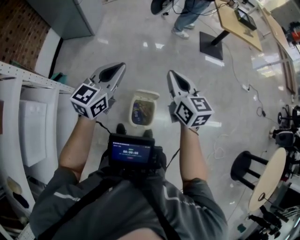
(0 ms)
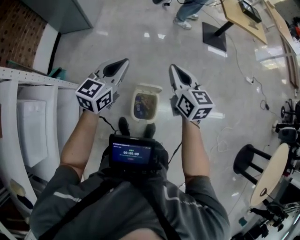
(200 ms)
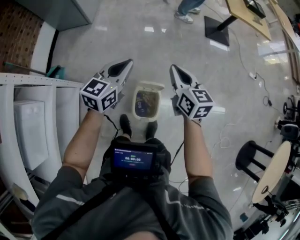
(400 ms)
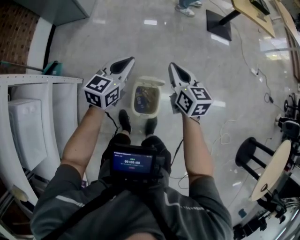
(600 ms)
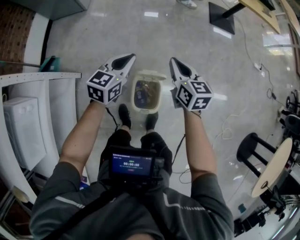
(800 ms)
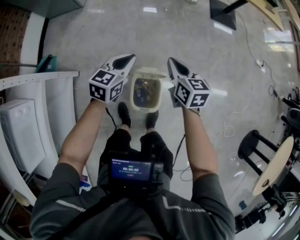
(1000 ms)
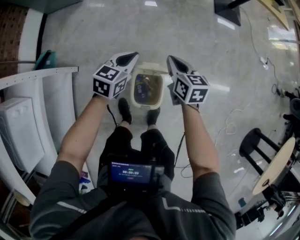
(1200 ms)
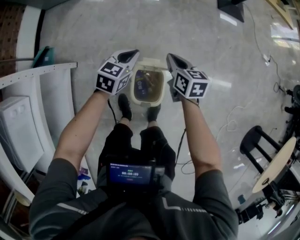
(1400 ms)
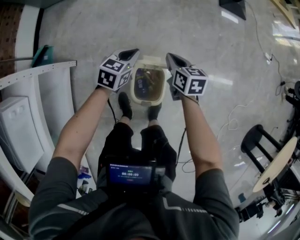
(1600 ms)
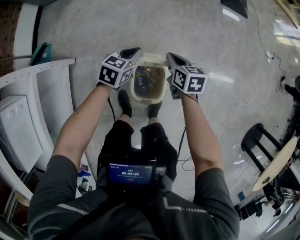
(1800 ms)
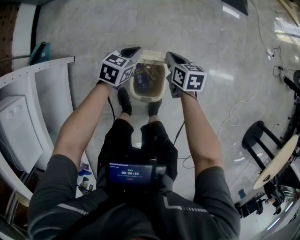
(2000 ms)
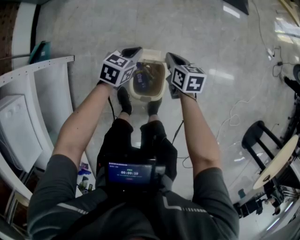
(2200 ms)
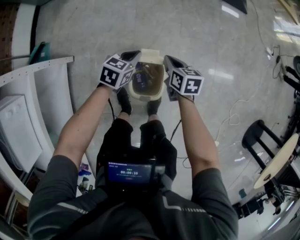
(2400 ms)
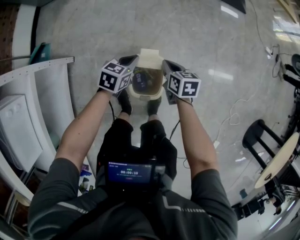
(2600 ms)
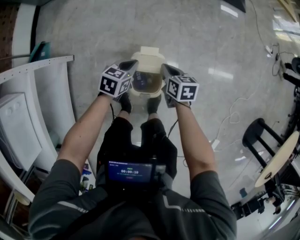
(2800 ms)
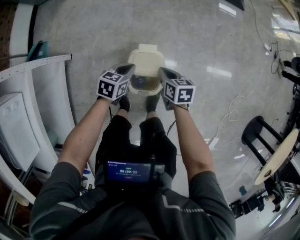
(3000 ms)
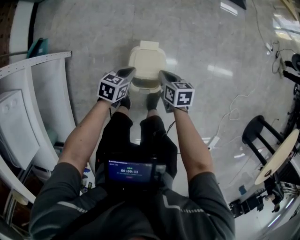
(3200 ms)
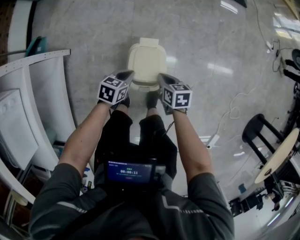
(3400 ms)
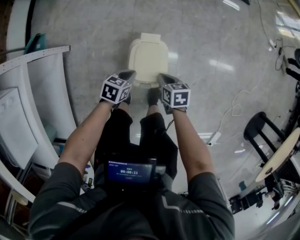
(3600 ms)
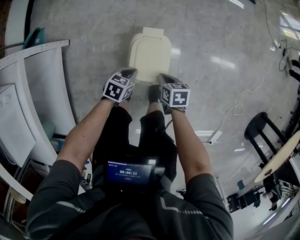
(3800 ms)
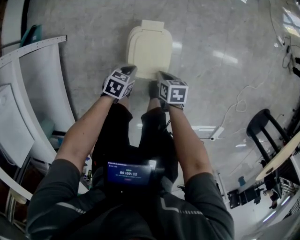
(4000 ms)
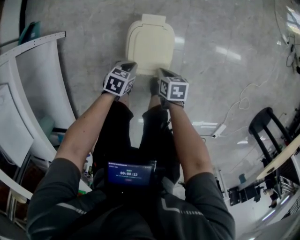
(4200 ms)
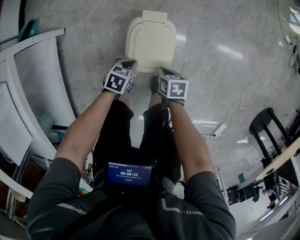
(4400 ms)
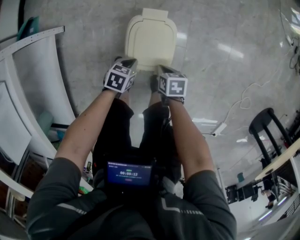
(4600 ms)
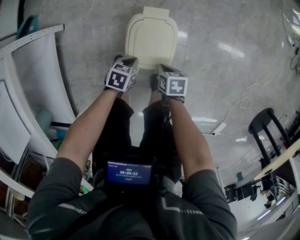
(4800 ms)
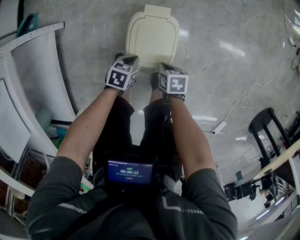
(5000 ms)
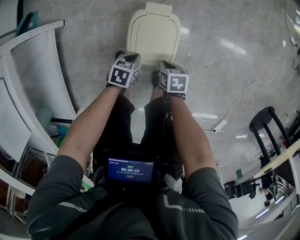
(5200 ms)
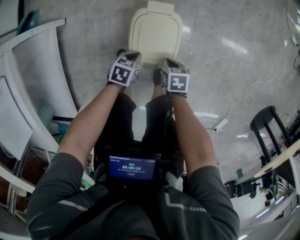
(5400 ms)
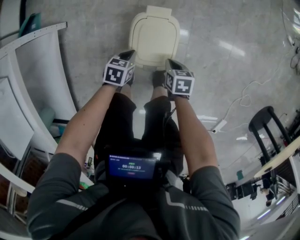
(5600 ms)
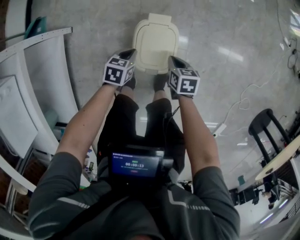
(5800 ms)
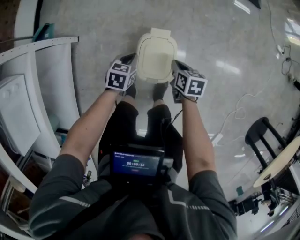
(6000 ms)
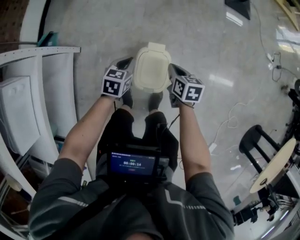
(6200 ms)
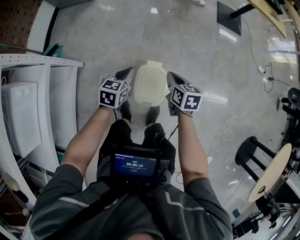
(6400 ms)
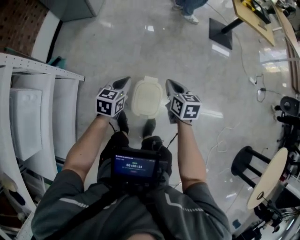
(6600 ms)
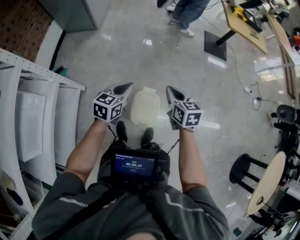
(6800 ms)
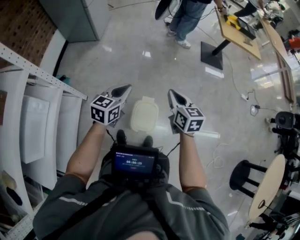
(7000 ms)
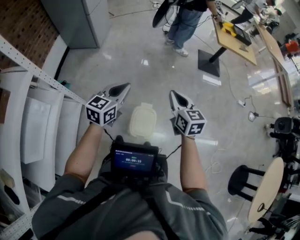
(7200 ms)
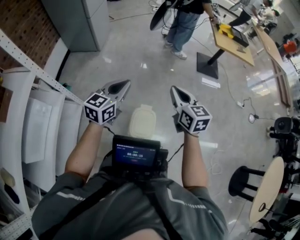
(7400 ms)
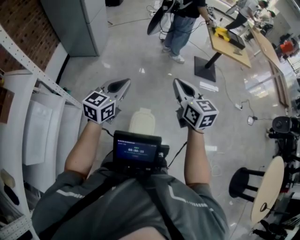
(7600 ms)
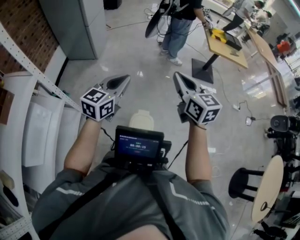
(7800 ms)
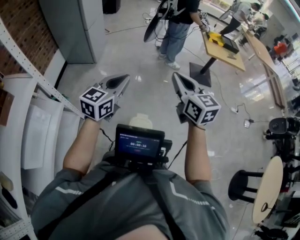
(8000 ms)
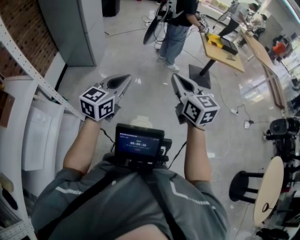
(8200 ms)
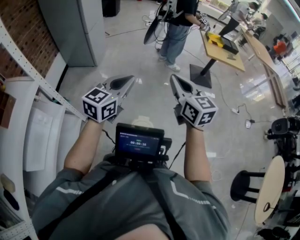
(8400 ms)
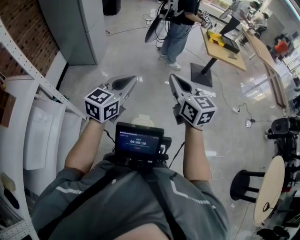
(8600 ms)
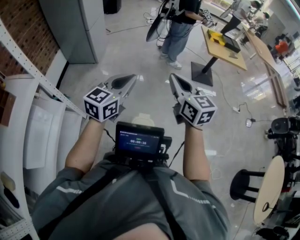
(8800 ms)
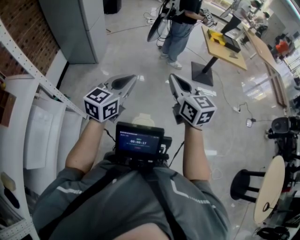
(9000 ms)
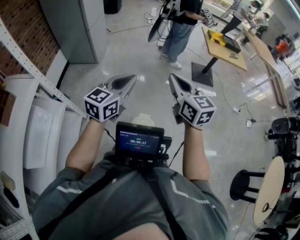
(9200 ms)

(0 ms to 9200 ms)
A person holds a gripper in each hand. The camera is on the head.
0 ms - 1600 ms: The grippers both shift downward by approximately 35 cm. The right gripper swivels approximately 30 degrees, while the left gripper swivels some 30 degrees.
1600 ms - 3000 ms: Both grippers move backward and downward, some 15 cm.
3000 ms - 4600 ms: Both grippers travel together downward, roughly 15 cm.
4600 ms - 6200 ms: Both grippers move upward, some 20 cm. The right gripper turns by approximately 20 degrees. Meanwhile the left gripper rotates approximately 30 degrees.
6200 ms - 7600 ms: Both grippers move upward, about 40 cm. The left gripper angles its fingers upward, by some 40 degrees. The right gripper points its fingers some 30 degrees further upward.
7600 ms - 9200 ms: Both grippers travel together upward, approximately 5 cm.

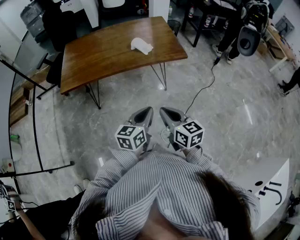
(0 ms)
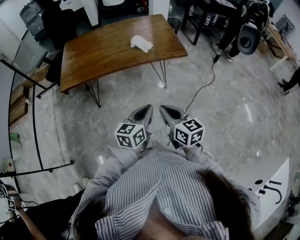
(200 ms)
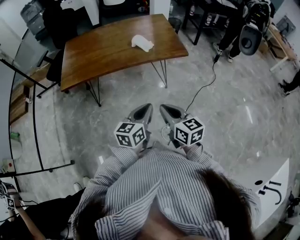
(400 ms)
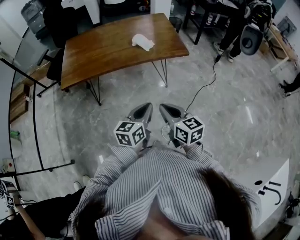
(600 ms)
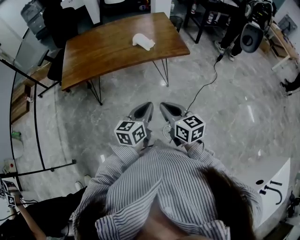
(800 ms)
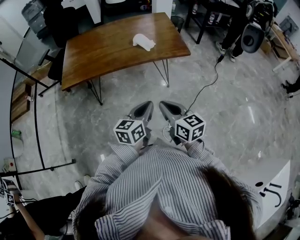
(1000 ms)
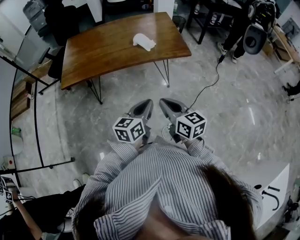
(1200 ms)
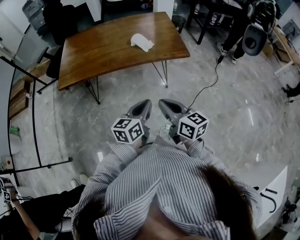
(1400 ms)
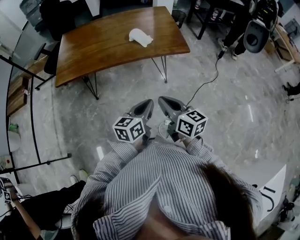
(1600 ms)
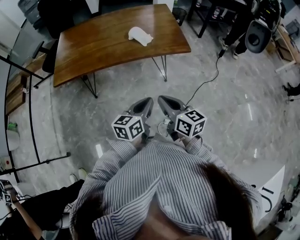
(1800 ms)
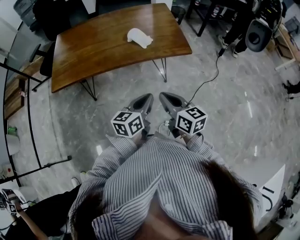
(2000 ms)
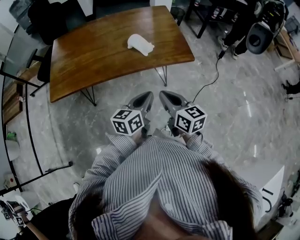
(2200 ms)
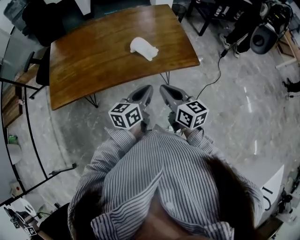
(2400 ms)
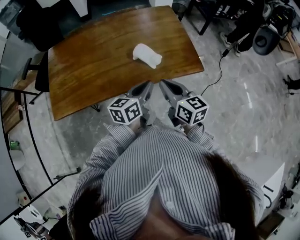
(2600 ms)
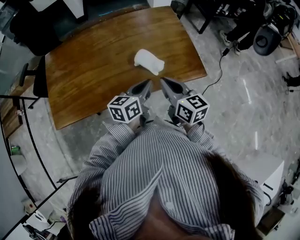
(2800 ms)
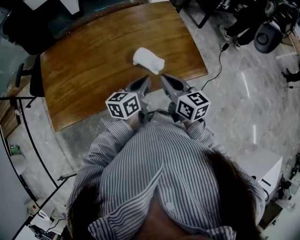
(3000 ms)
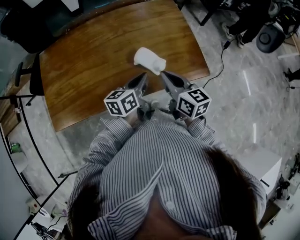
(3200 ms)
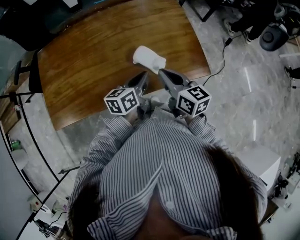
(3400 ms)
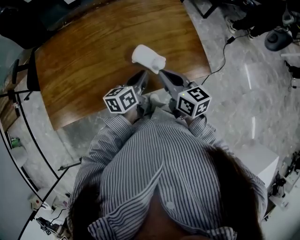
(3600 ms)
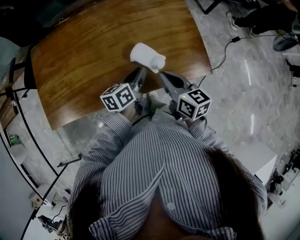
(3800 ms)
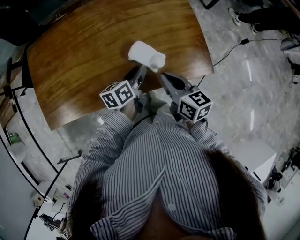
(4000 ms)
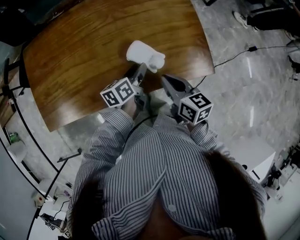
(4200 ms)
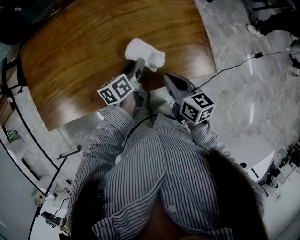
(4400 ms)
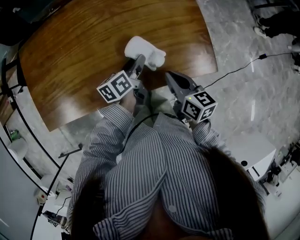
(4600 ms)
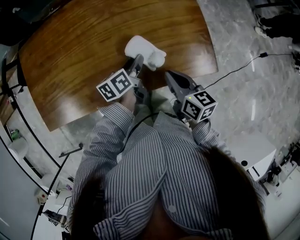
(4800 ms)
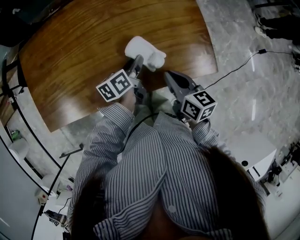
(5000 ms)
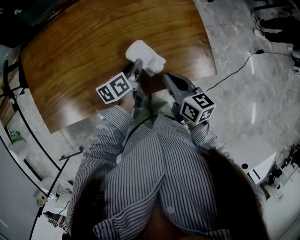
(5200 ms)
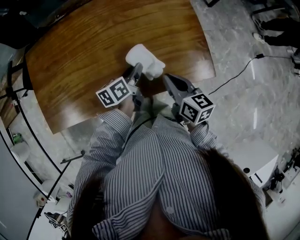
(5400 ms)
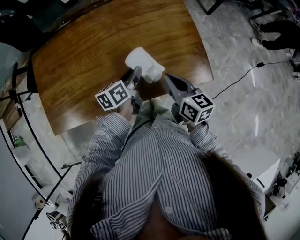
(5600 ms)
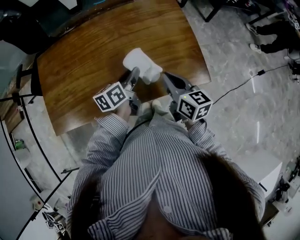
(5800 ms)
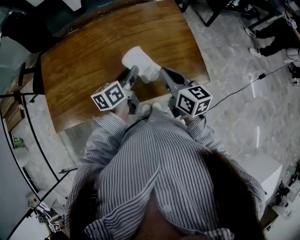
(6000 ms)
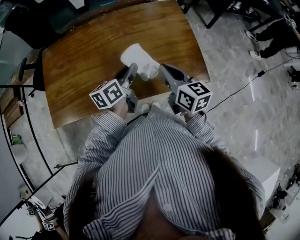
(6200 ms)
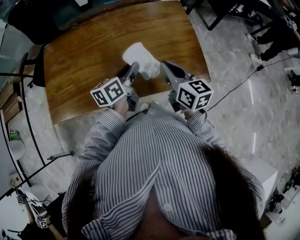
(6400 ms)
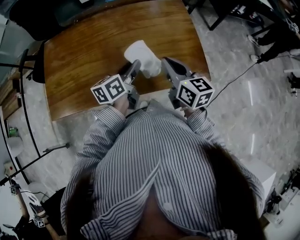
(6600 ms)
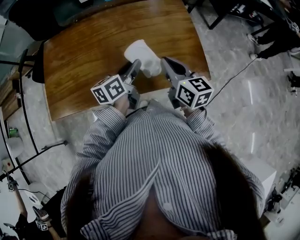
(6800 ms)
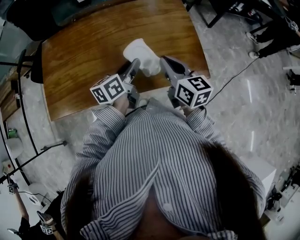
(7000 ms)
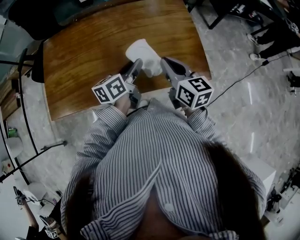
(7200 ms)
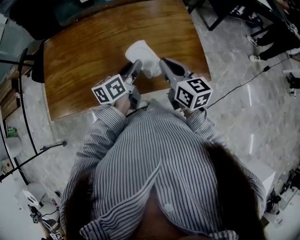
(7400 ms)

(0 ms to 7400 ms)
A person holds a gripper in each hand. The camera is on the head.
0 ms - 1400 ms: The left gripper ends up about 5 cm from where it was. The right gripper moves roughly 5 cm.
1400 ms - 3000 ms: Both grippers move forward, about 40 cm.
3000 ms - 4400 ms: The left gripper is displaced downward and forward by approximately 15 cm, swivels some 30 degrees, and opens its fingers. Meanwhile the right gripper heads downward, covering roughly 10 cm.
4400 ms - 6000 ms: Both grippers move upward, roughly 10 cm.
6000 ms - 7400 ms: There are only small adjustments of the grippers.

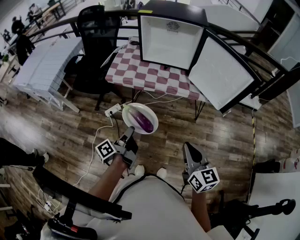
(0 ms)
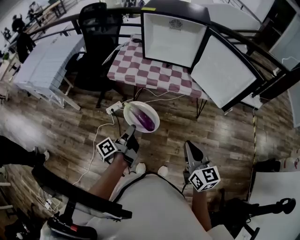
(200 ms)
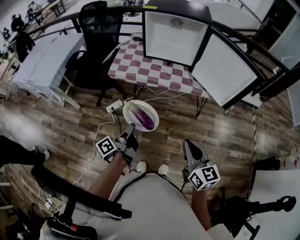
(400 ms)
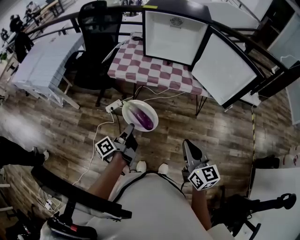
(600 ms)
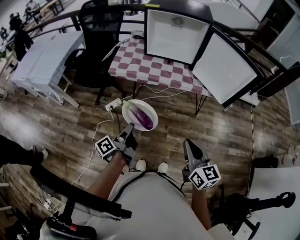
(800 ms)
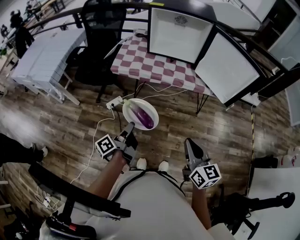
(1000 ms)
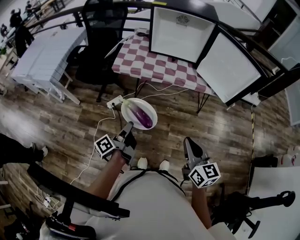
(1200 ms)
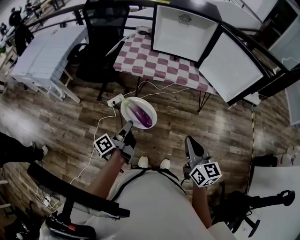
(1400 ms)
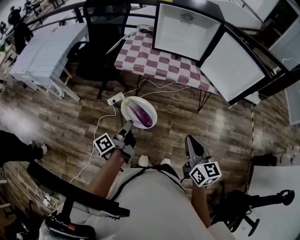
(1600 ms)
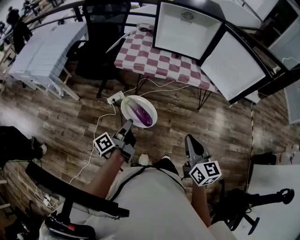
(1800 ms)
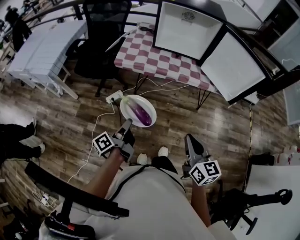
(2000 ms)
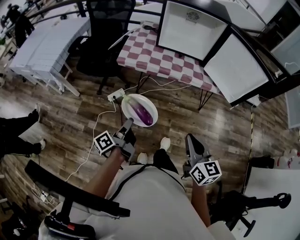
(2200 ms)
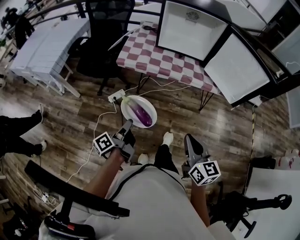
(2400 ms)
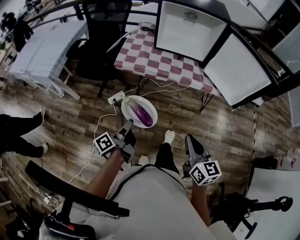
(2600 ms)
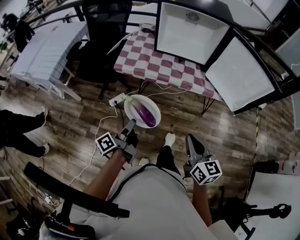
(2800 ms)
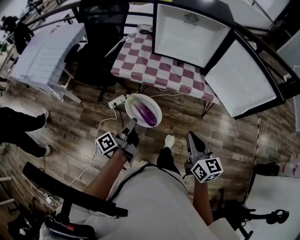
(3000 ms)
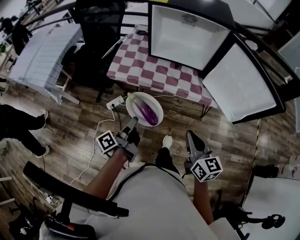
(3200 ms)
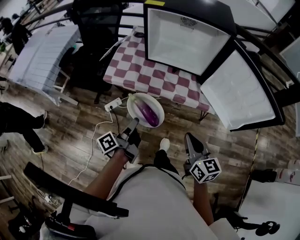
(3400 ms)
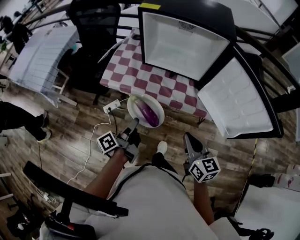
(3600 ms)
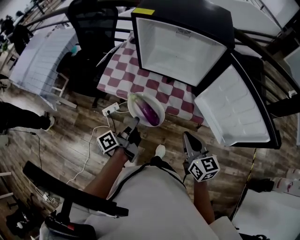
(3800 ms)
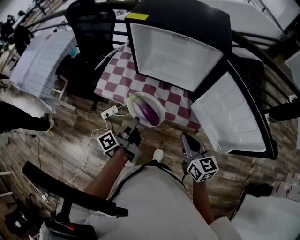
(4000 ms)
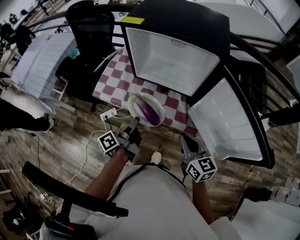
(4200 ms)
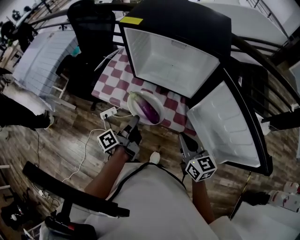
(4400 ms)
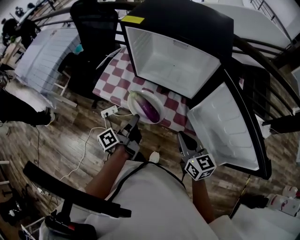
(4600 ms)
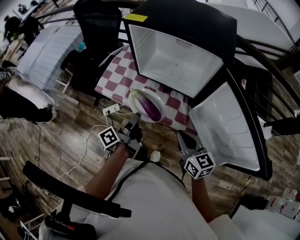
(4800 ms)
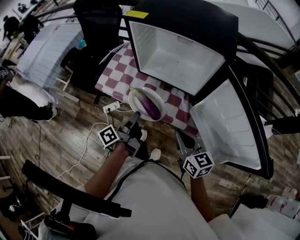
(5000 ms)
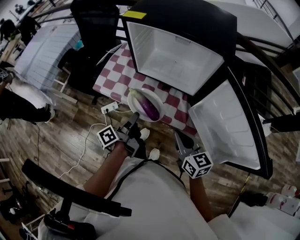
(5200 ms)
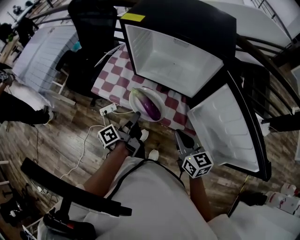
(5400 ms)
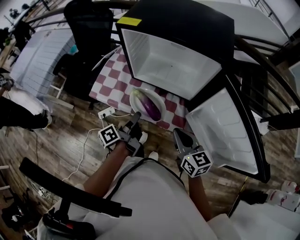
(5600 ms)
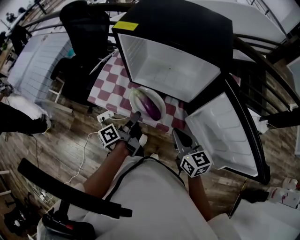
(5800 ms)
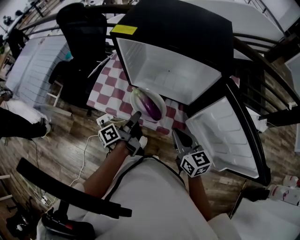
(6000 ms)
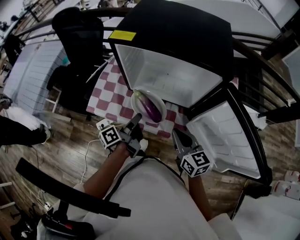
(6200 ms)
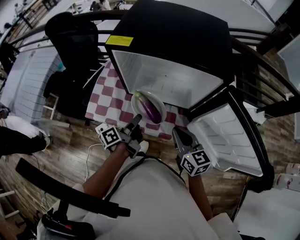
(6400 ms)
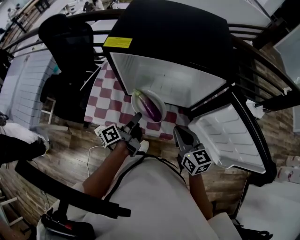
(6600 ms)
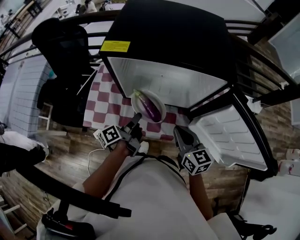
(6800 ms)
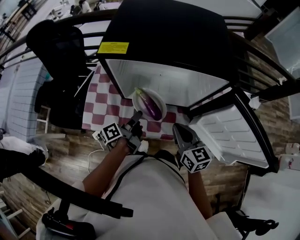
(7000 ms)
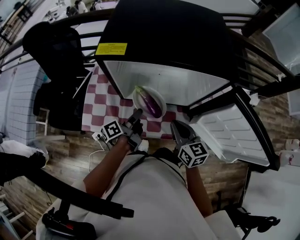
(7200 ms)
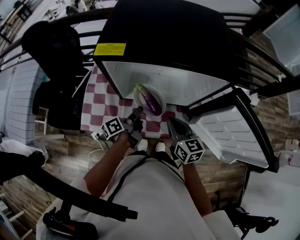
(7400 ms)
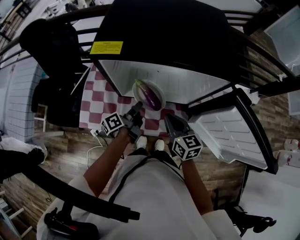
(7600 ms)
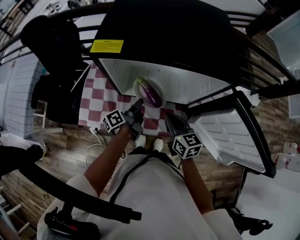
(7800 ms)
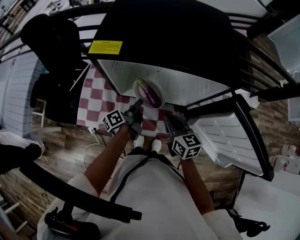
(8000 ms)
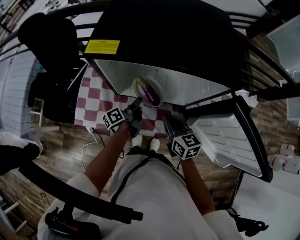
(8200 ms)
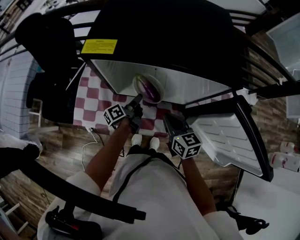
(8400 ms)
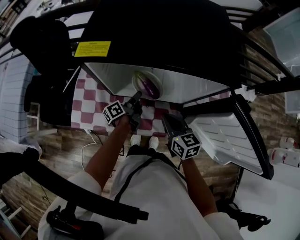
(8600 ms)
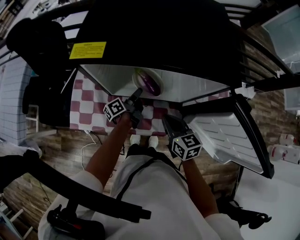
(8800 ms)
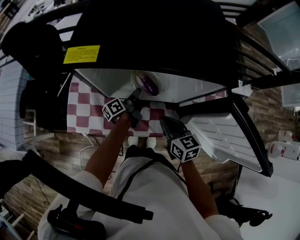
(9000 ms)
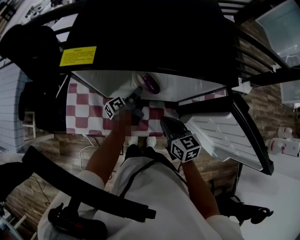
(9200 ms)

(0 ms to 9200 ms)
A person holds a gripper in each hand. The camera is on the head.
0 ms - 1600 ms: The right gripper moves about 10 cm.
1600 ms - 3000 ms: The right gripper shifts by approximately 15 cm.
3000 ms - 4600 ms: The right gripper moves some 30 cm.
4600 ms - 6200 ms: The right gripper shifts by approximately 10 cm.
6200 ms - 7600 ms: The right gripper moves some 10 cm.
